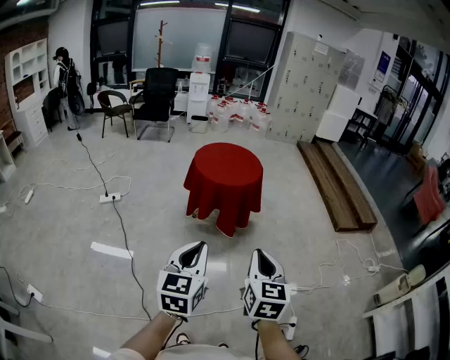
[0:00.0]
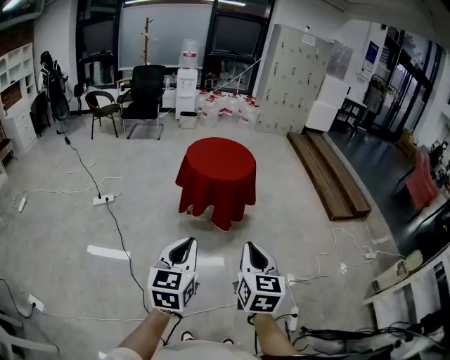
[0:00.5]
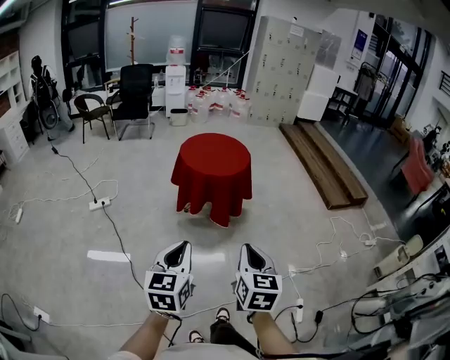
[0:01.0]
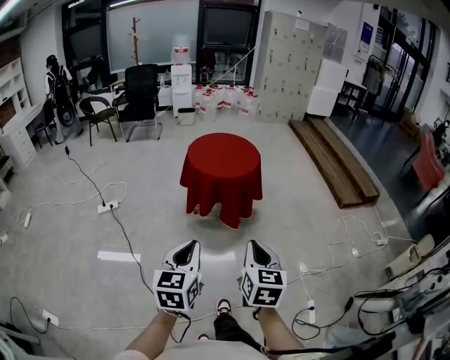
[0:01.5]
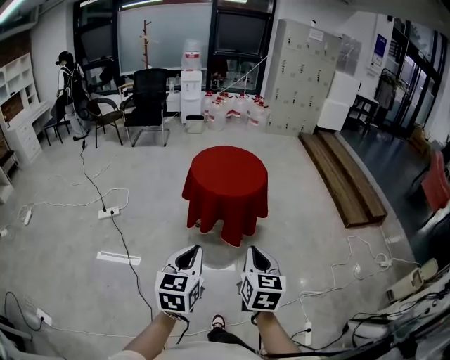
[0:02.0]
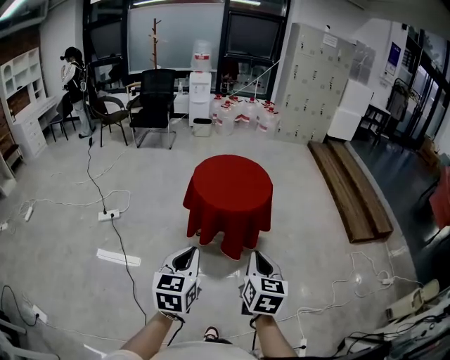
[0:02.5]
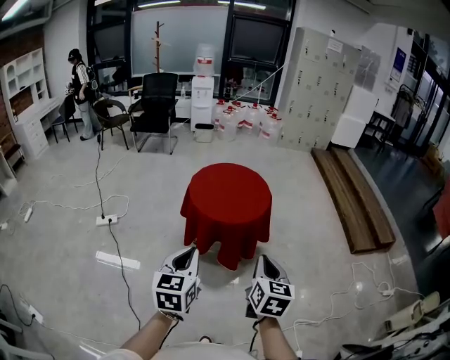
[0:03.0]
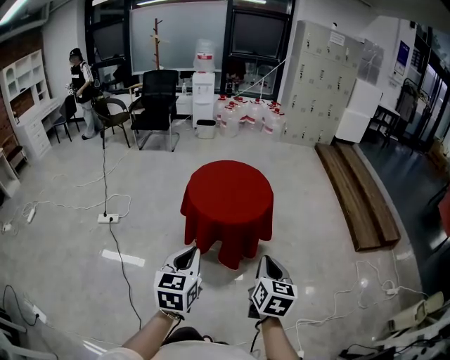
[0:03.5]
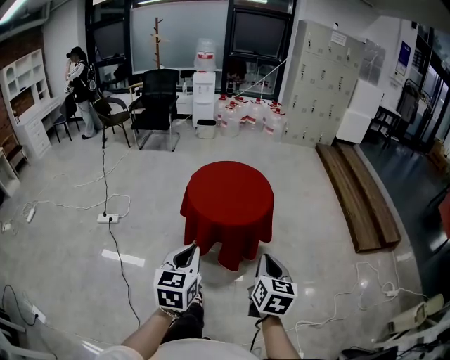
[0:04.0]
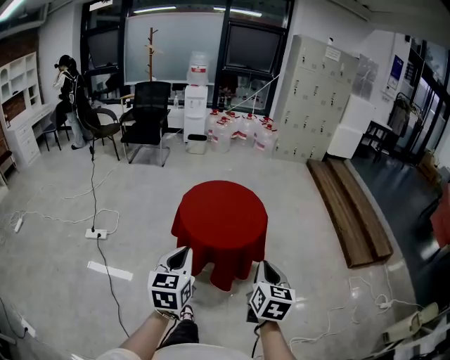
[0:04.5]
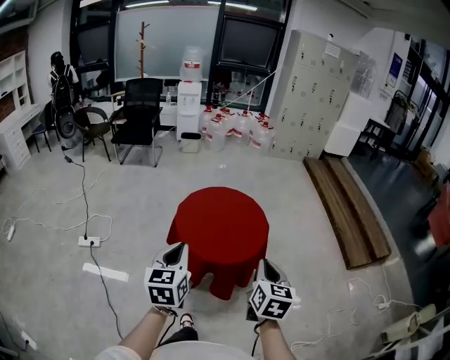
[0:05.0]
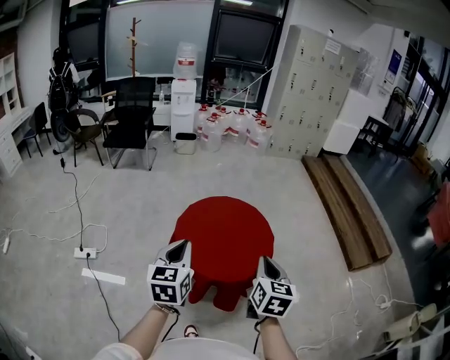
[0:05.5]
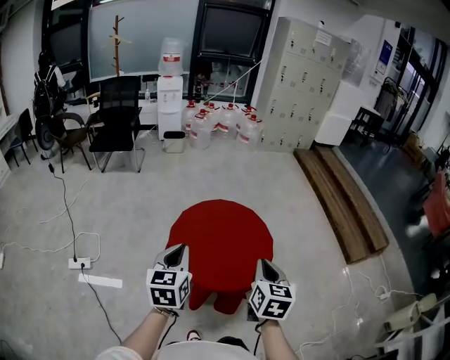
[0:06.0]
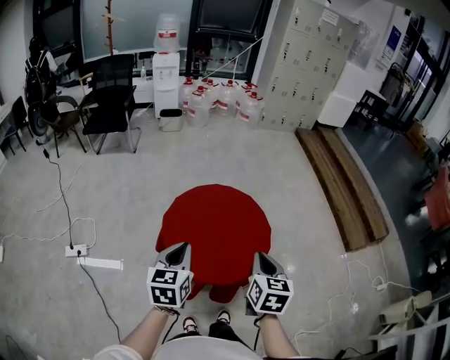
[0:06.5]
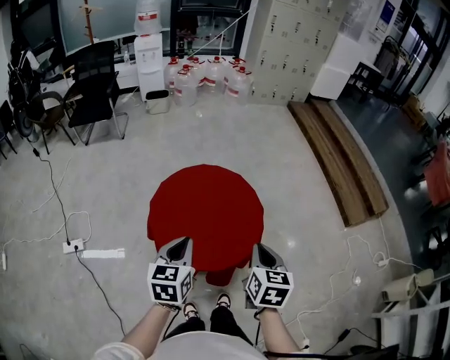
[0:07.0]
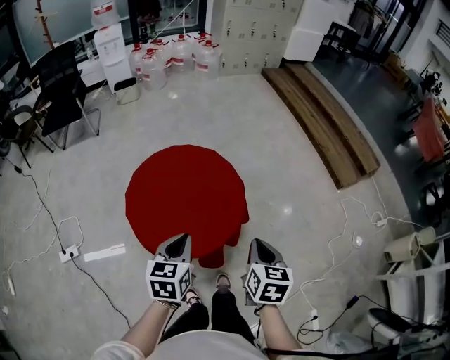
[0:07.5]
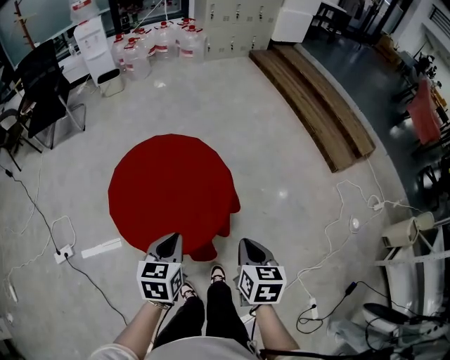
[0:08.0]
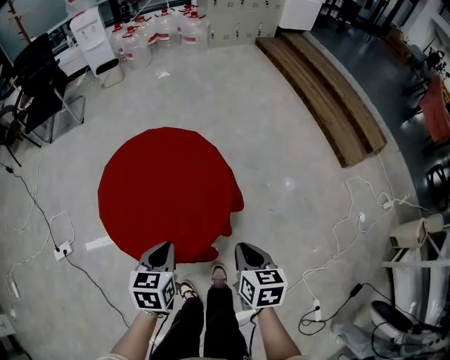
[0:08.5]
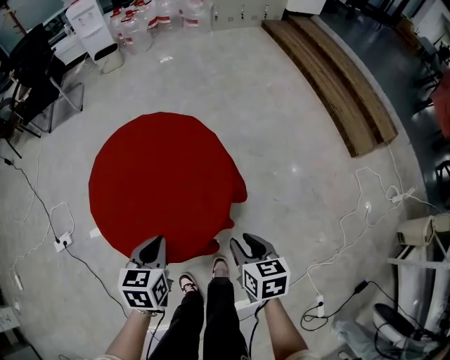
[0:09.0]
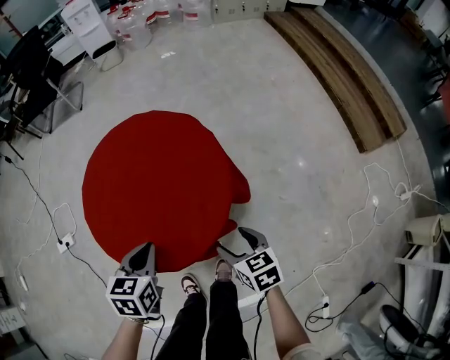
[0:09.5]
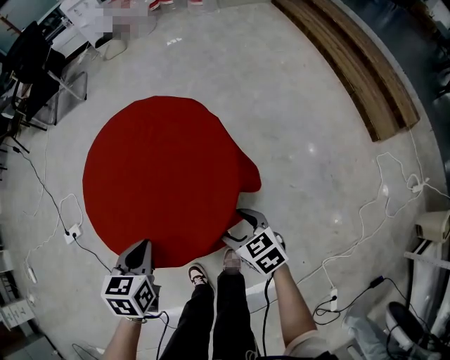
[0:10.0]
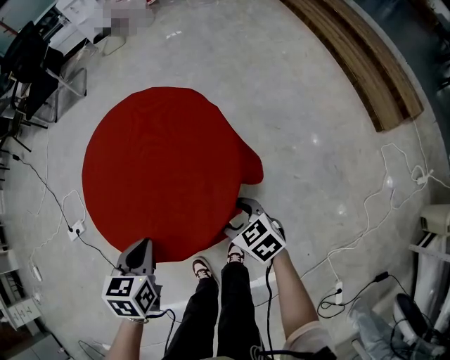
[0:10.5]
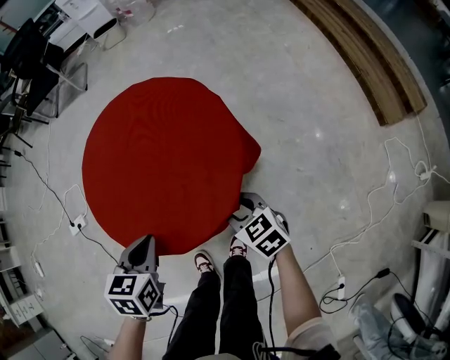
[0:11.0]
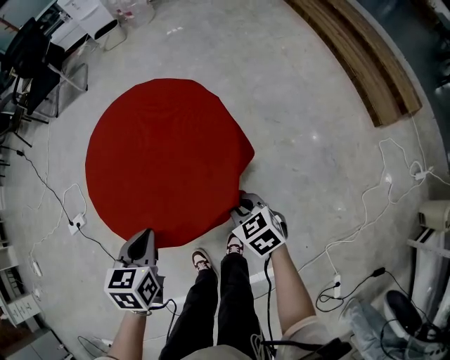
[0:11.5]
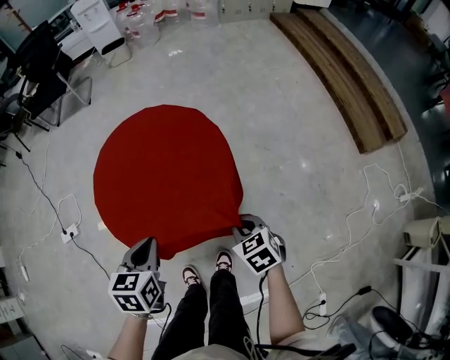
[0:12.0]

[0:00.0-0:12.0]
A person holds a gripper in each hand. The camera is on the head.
0:00.0 to 0:02.0: Both grippers move forward, about 15 cm.
0:02.0 to 0:04.0: The right gripper shifts about 20 cm forward and to the right, while the left gripper is displaced forward by roughly 15 cm.
0:04.0 to 0:06.0: The grippers both shift forward by about 30 cm.
0:06.0 to 0:08.0: The right gripper is displaced downward and to the right by some 20 cm, and changes its angle by approximately 20 degrees. Meanwhile the left gripper moves to the right and downward, about 20 cm, and rotates about 30 degrees.
0:08.0 to 0:10.0: The right gripper shifts approximately 20 cm downward, turns by approximately 50 degrees, and opens. The left gripper is displaced downward by about 10 cm.
0:10.0 to 0:12.0: The right gripper closes up.

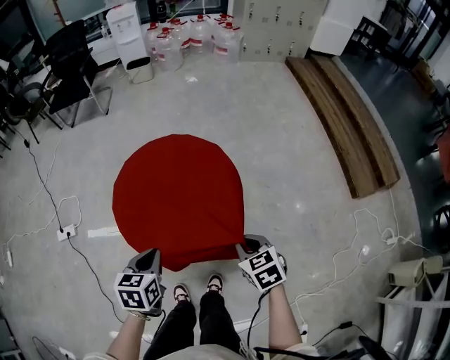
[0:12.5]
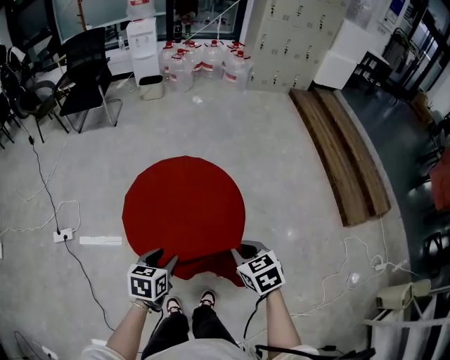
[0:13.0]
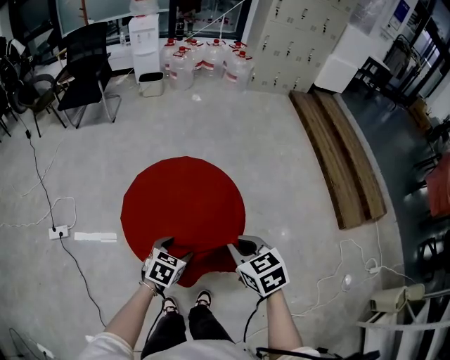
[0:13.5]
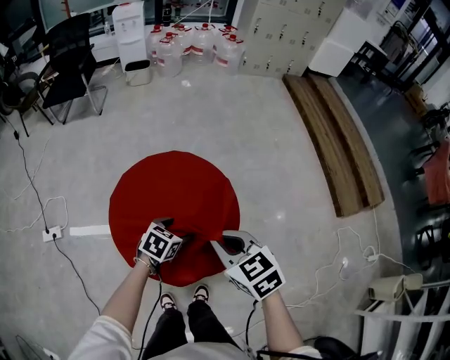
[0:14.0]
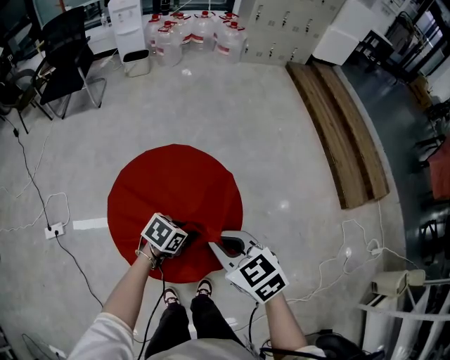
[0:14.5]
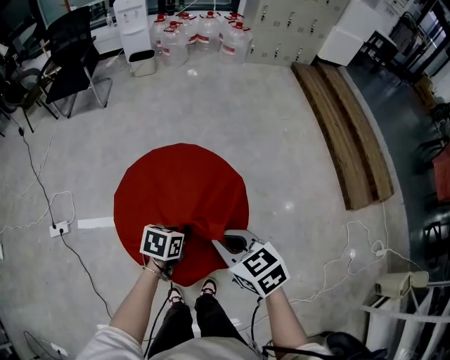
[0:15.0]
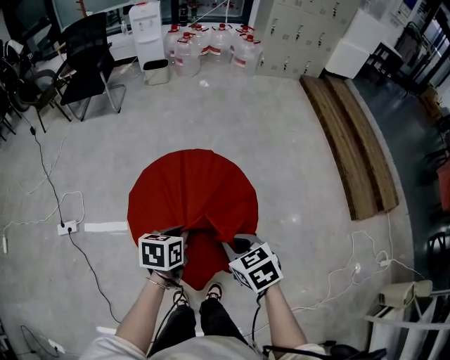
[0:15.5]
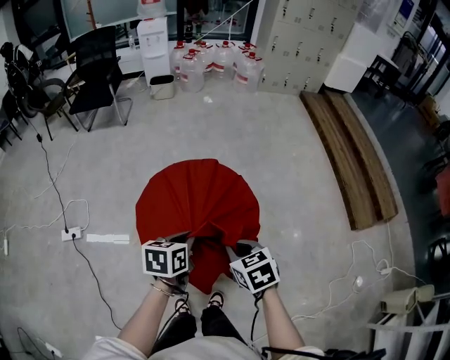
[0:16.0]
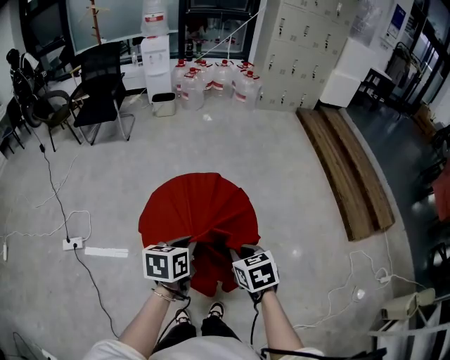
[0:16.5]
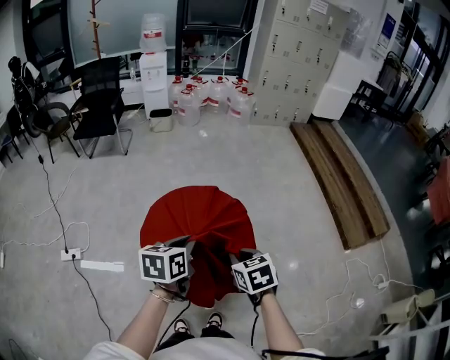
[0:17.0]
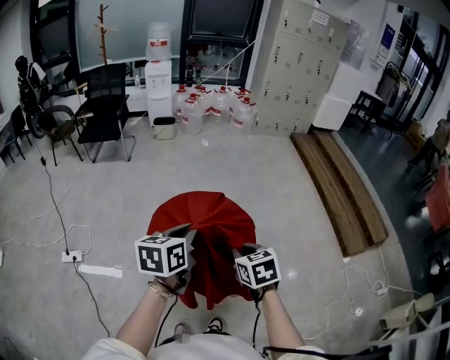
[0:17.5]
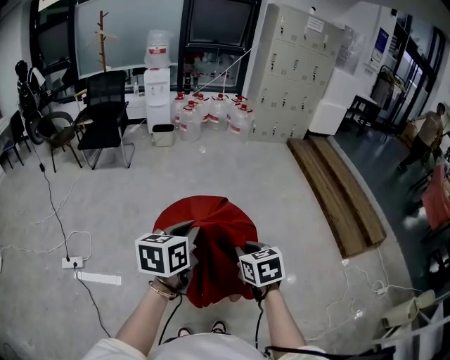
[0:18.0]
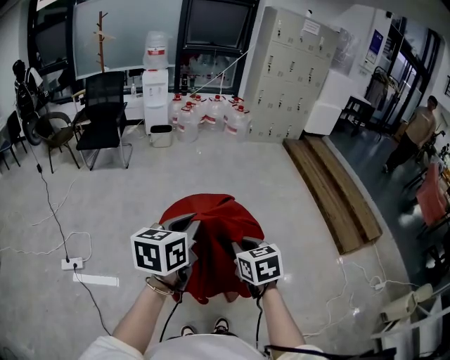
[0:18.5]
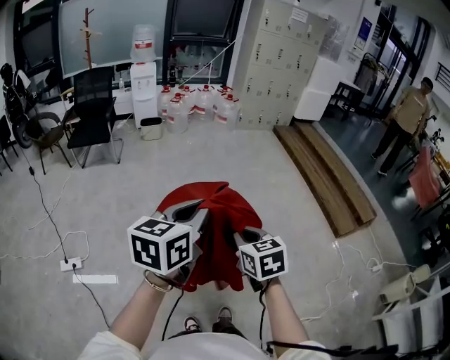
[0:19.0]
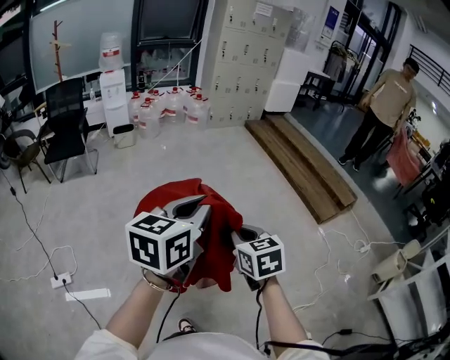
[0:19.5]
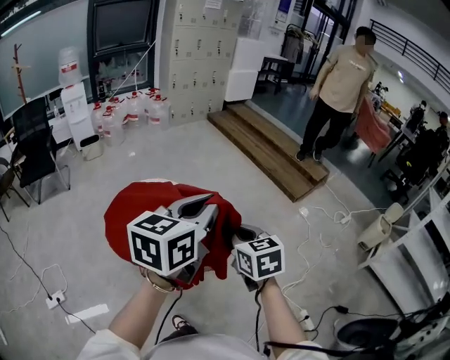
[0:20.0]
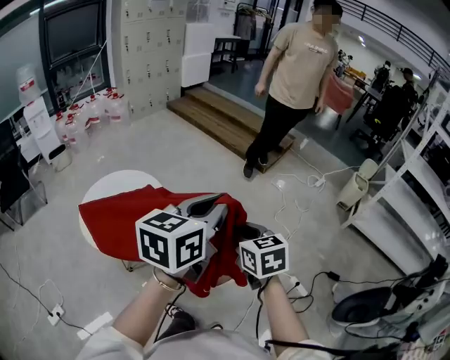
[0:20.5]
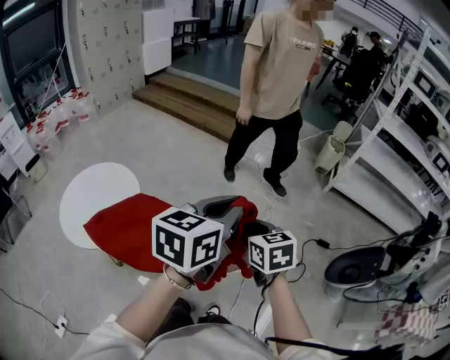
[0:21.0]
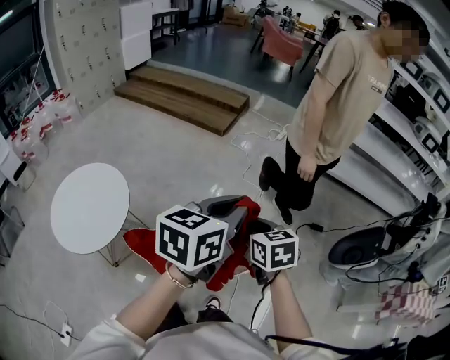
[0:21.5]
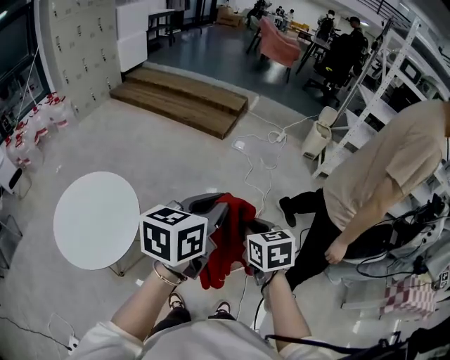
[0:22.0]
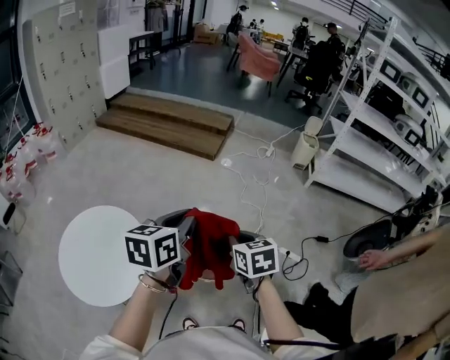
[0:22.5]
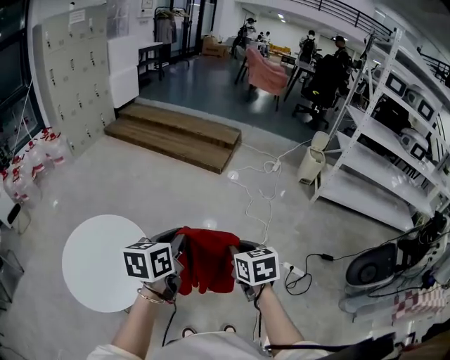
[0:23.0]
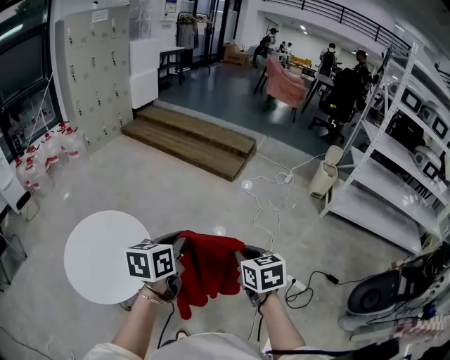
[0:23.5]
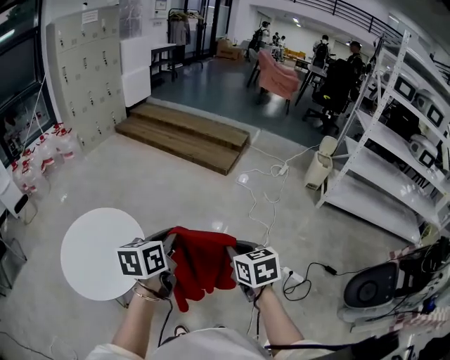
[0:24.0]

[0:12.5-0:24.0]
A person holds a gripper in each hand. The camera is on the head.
0:12.5 to 0:14.5: The left gripper changes place by some 15 cm, rotates about 40 degrees, and opens; the right gripper heads upward, covering roughly 15 cm.
0:14.5 to 0:16.5: The left gripper is displaced upward by roughly 15 cm, changes its angle by about 40 degrees, and closes its fingers. The right gripper changes its angle by about 20 degrees.
0:16.5 to 0:18.5: The left gripper is displaced upward by about 20 cm, and turns by approximately 20 degrees, while the right gripper moves upward and to the left, roughly 10 cm.
0:18.5 to 0:20.0: The right gripper changes place by approximately 20 cm, and turns by roughly 20 degrees, while the left gripper shifts by some 25 cm, and rotates about 30 degrees.
0:20.0 to 0:22.0: The left gripper moves roughly 25 cm, and turns by about 40 degrees. The right gripper moves some 25 cm, and turns by approximately 40 degrees.
0:22.0 to 0:24.0: The right gripper travels to the left by approximately 5 cm, while the left gripper travels to the left and downward by about 15 cm, and turns by approximately 20 degrees.

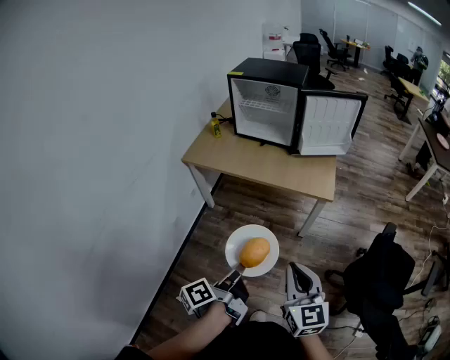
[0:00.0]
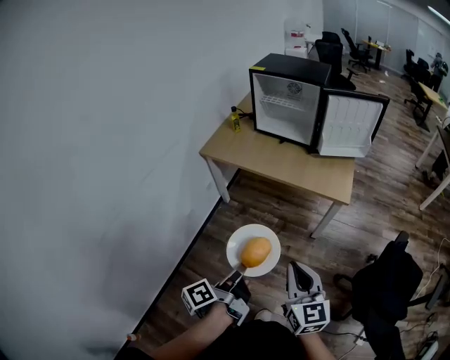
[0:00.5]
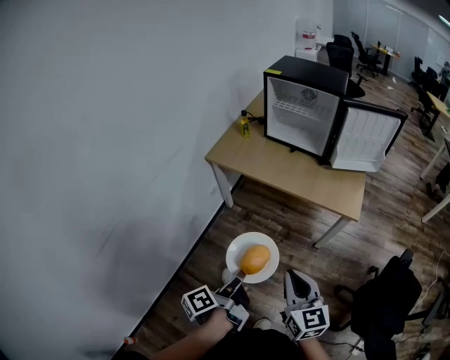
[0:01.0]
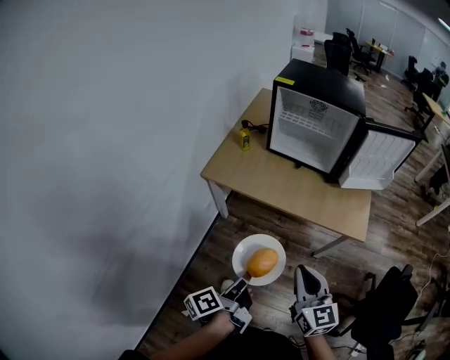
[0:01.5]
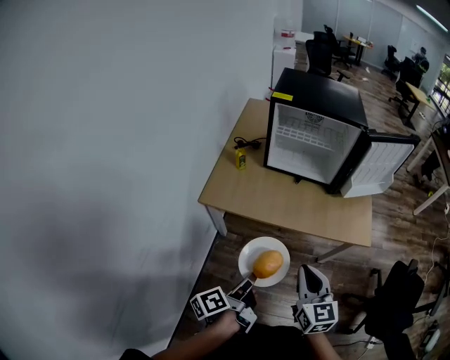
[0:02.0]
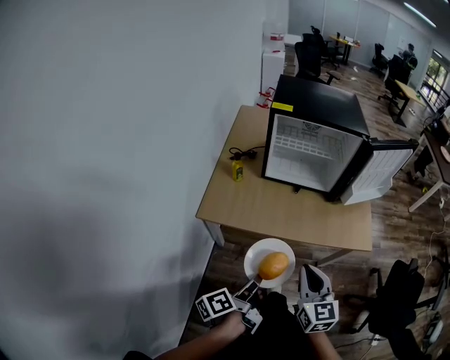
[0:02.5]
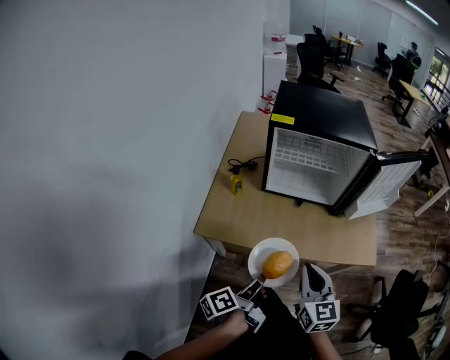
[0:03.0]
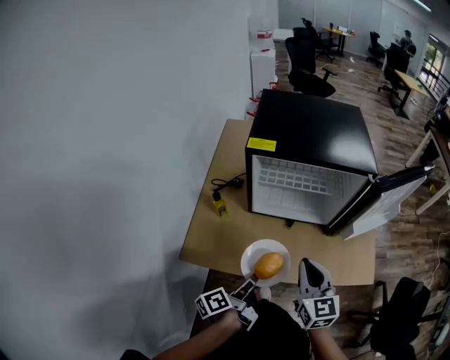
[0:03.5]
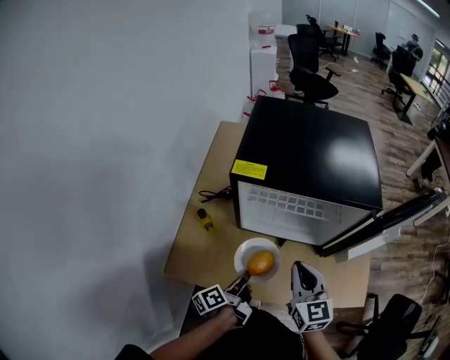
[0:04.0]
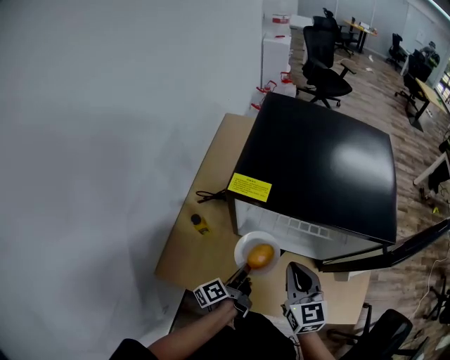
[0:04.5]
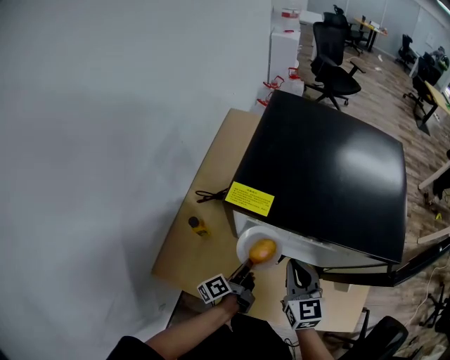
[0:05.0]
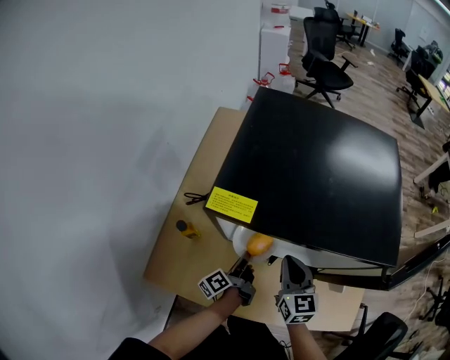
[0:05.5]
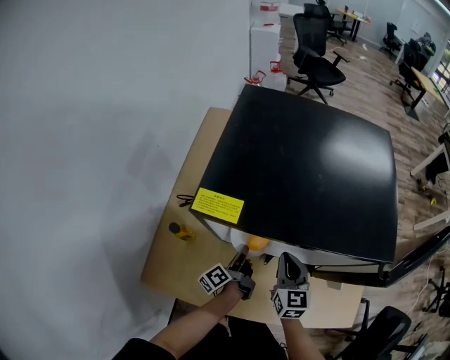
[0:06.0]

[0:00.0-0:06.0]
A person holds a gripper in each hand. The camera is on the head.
0:00.0 to 0:02.0: Both grippers travel together forward and to the left, about 35 cm.
0:02.0 to 0:04.0: Both grippers travel together forward, some 40 cm.
0:04.0 to 0:06.0: The two grippers go about 20 cm forward and downward.
